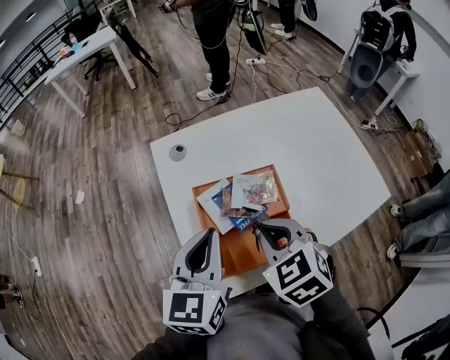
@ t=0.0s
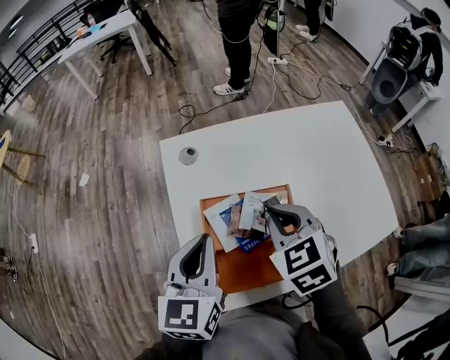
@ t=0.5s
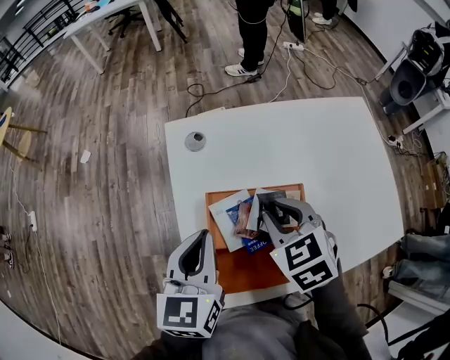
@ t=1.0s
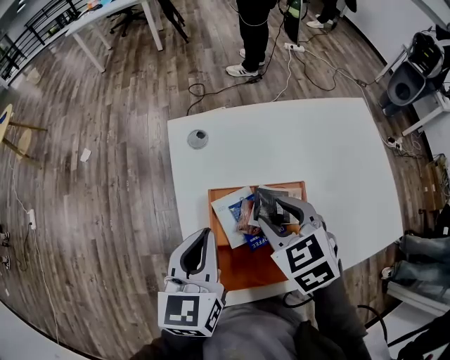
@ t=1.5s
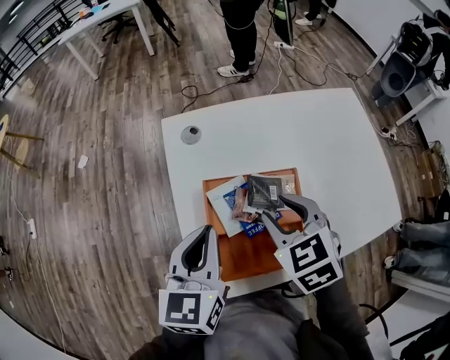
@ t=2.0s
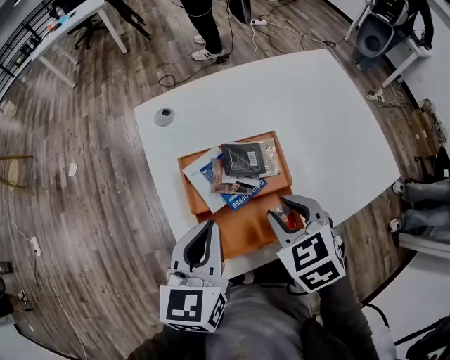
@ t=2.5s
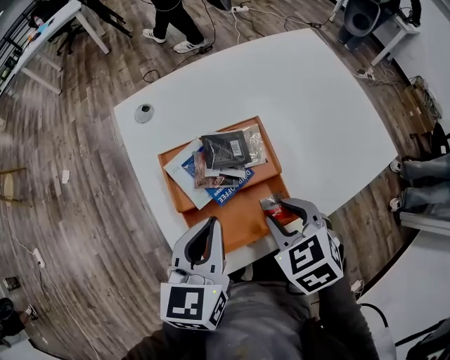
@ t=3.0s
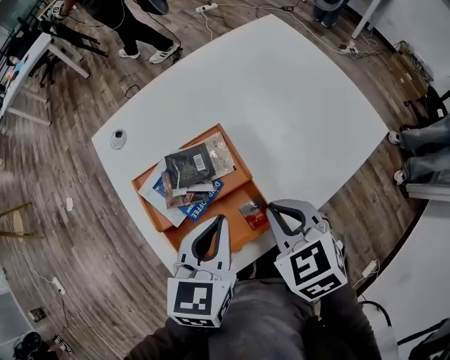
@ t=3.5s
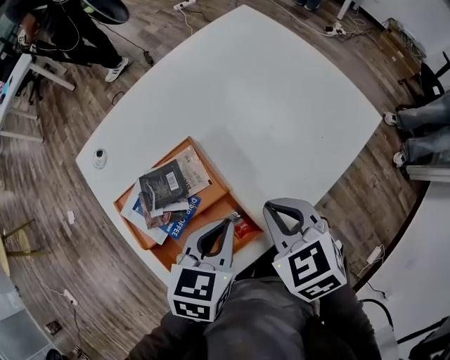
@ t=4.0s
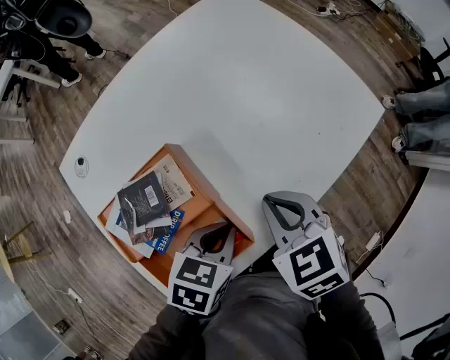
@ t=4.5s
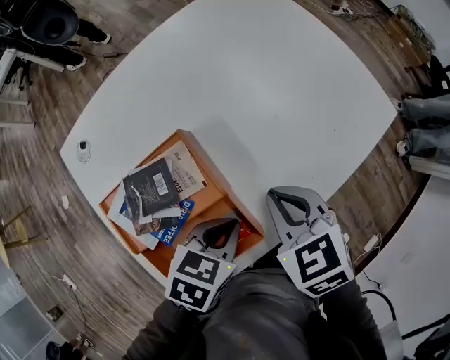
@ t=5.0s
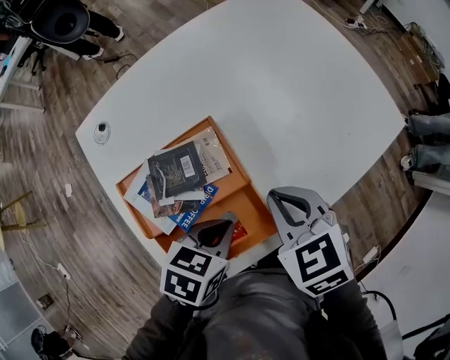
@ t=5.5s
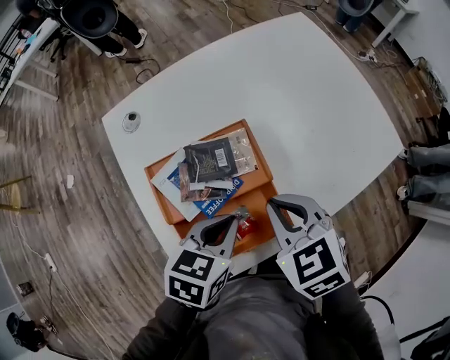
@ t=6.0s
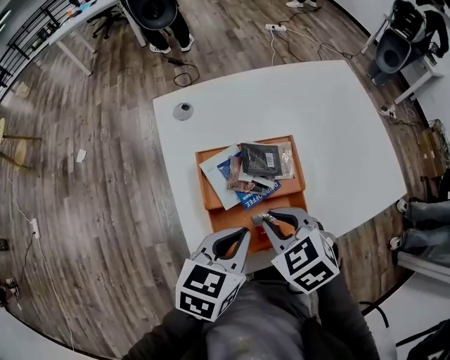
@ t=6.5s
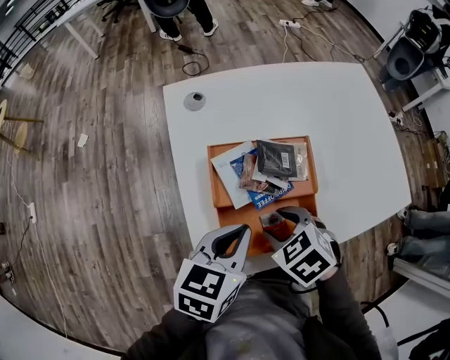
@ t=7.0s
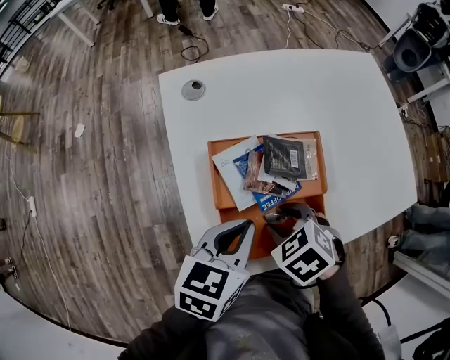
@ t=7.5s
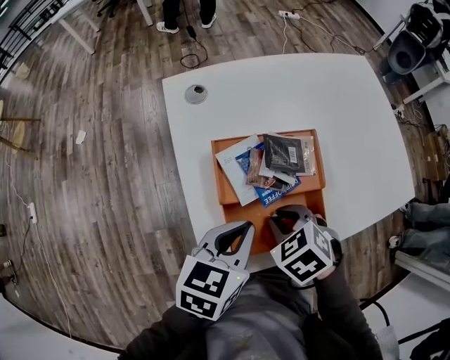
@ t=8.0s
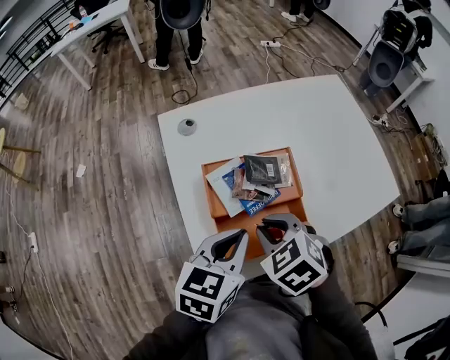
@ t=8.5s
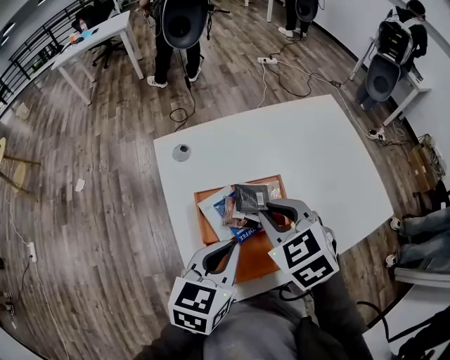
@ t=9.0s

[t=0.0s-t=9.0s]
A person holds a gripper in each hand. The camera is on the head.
t=0.0s to t=2.0s: The right gripper is displaced forward by some 5 cm, and opens its fingers.
t=2.0s to t=4.5s: The left gripper shifts by roughly 30 cm, and tilts its fingers some 30 degrees downward. Meanwhile the right gripper moves roughly 20 cm, changes its angle by approximately 30 degrees, and closes up.
t=4.5s to t=7.0s: The right gripper shifts by roughly 20 cm, rotates about 40 degrees, and opens. Meanwhile the left gripper moves approximately 20 cm, and turns by roughly 40 degrees.
t=7.0s to t=9.0s: The right gripper shifts approximately 15 cm upward and forward, rotates roughly 20 degrees, and closes; the left gripper travels upward by some 5 cm.

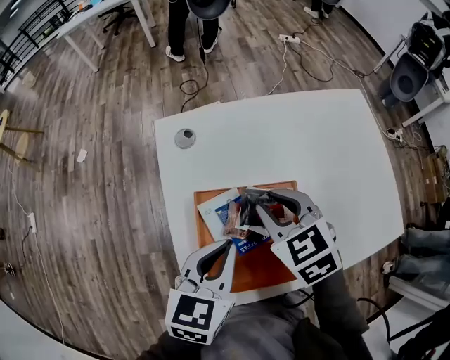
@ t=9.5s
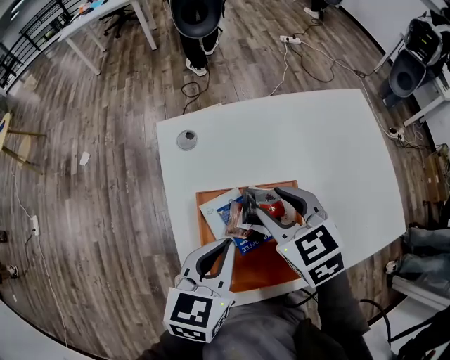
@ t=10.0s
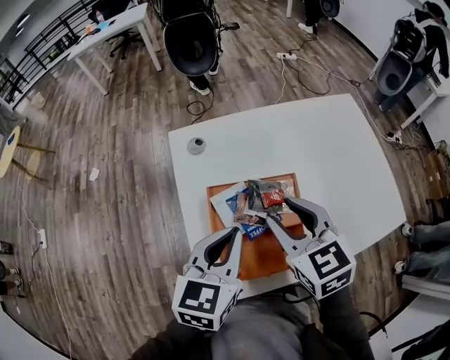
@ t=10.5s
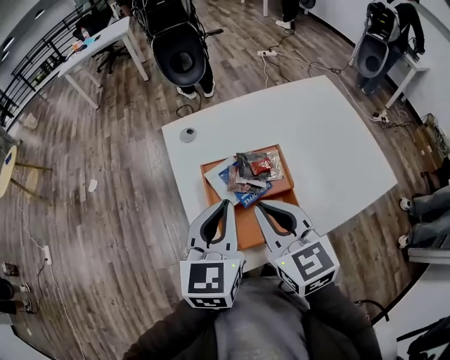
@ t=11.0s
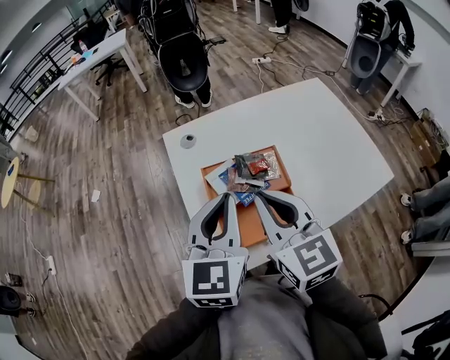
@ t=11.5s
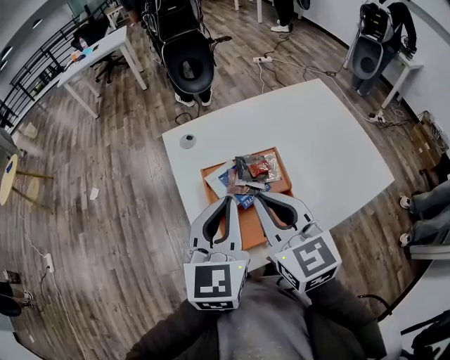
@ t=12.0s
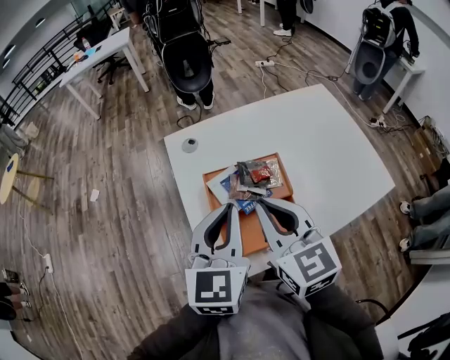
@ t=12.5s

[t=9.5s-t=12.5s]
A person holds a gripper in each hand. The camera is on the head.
t=9.5s to t=11.0s: The right gripper moves backward and upward, about 15 cm, changes its angle by roughly 30 degrees, and closes up. The left gripper travels upward by approximately 5 cm, and rotates approximately 20 degrees.
t=11.0s to t=12.5s: The grippers make only small movements.

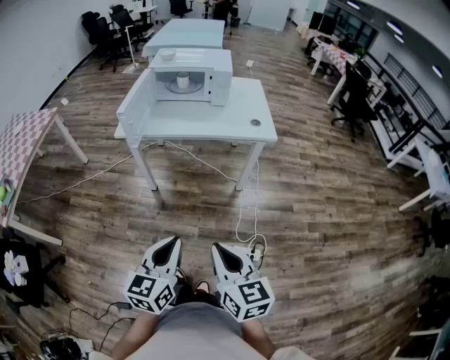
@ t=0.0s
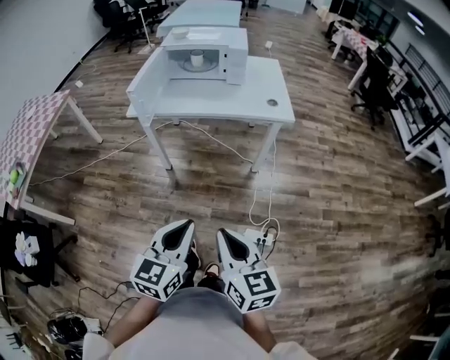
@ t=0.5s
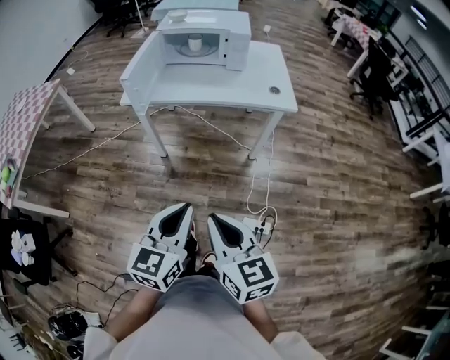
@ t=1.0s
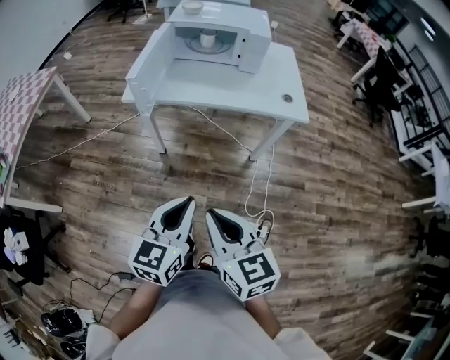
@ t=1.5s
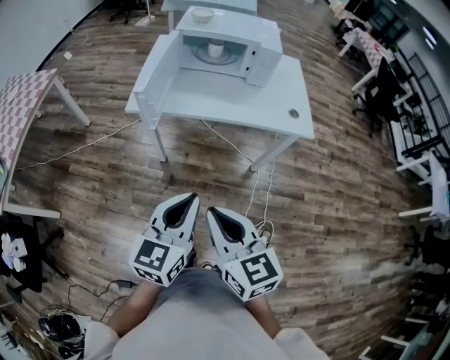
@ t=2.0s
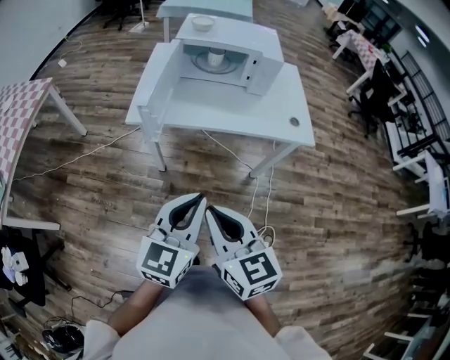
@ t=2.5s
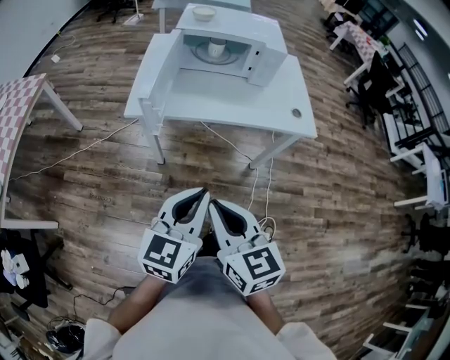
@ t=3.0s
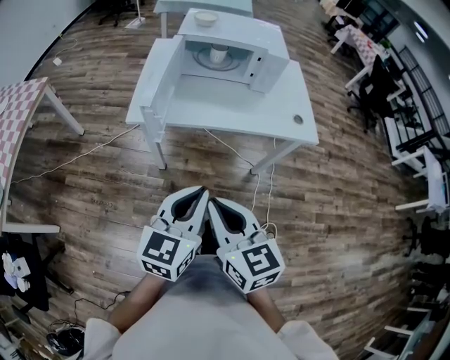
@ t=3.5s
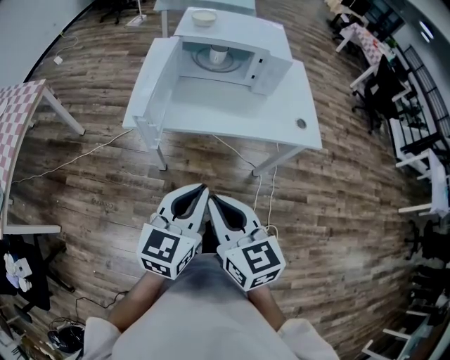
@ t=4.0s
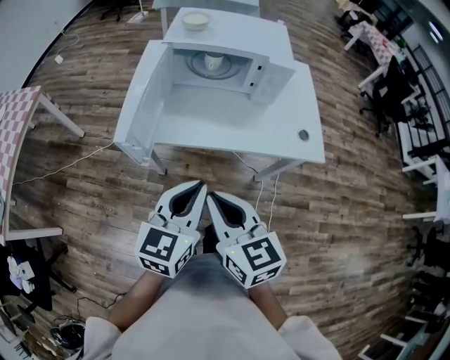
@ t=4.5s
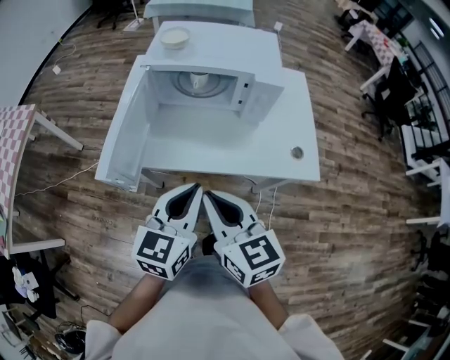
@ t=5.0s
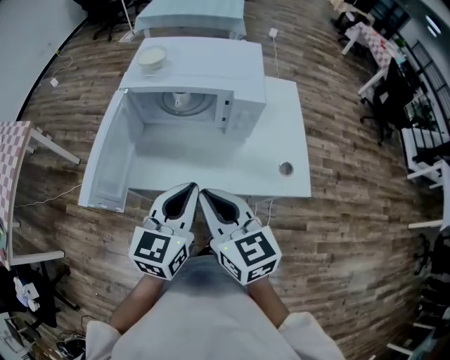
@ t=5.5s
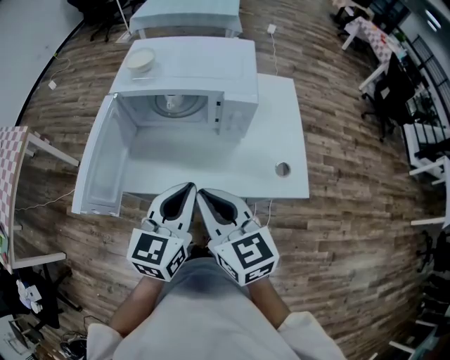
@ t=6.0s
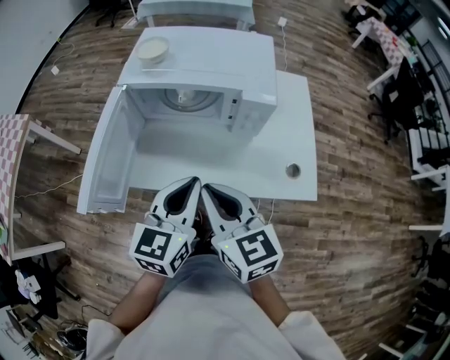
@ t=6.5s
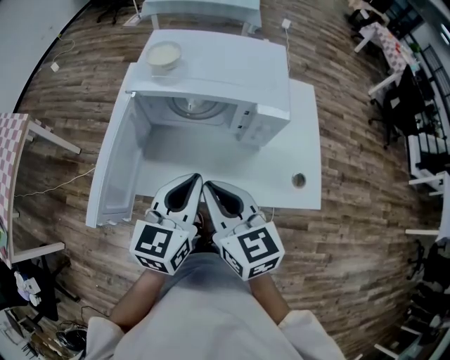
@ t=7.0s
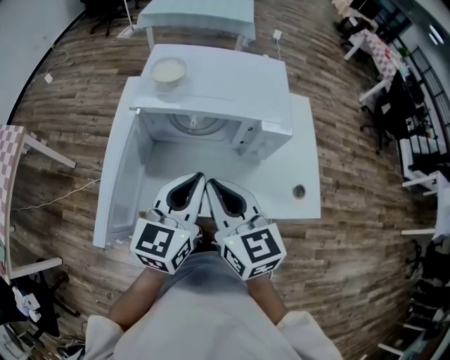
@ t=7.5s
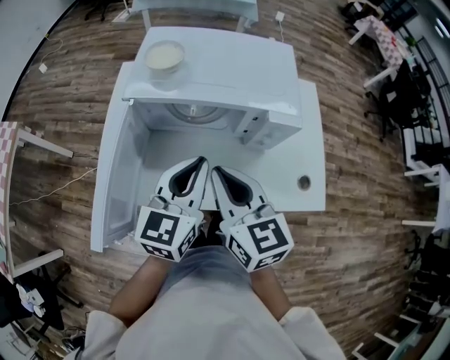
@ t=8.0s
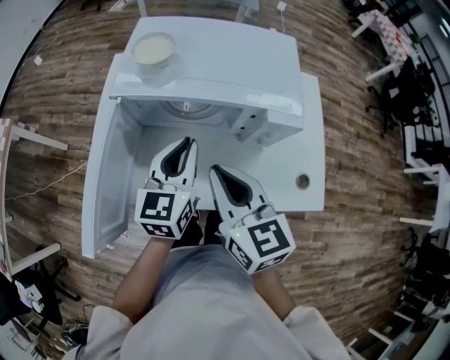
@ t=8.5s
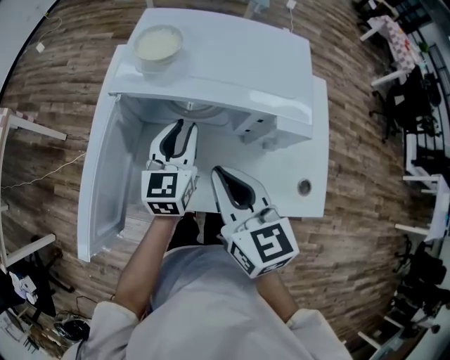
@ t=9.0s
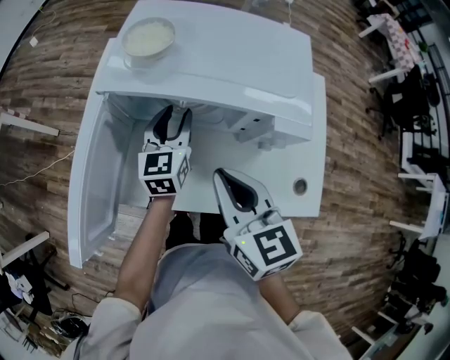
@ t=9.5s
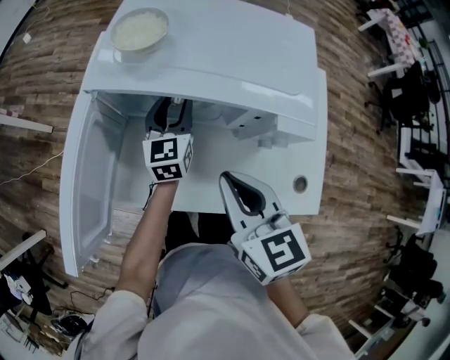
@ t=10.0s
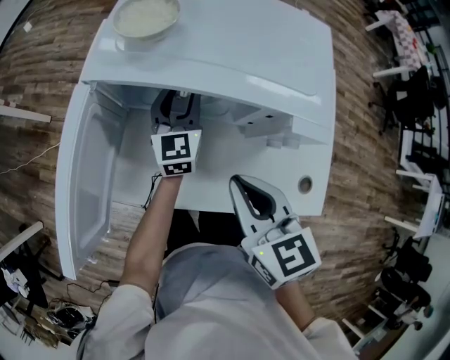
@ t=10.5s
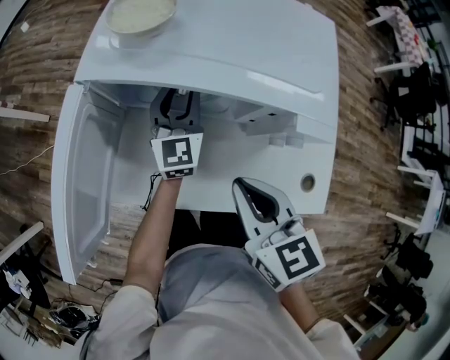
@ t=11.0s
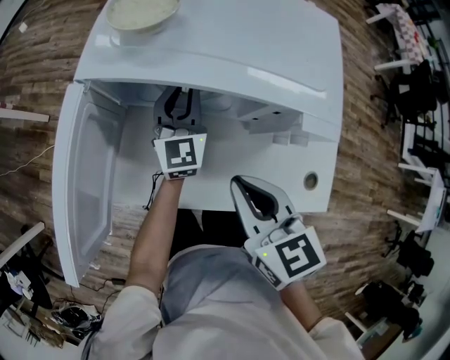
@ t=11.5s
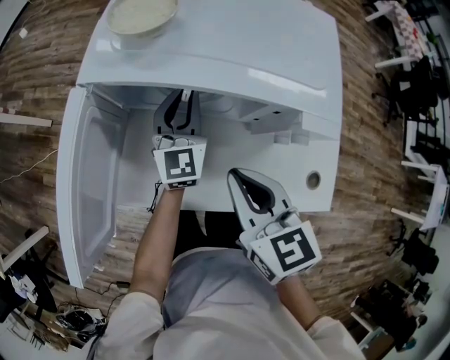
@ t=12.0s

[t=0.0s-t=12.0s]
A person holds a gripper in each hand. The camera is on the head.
t=0.0s to t=2.0s: The right gripper goes some 20 cm forward and to the left. Meanwhile the left gripper shifts approximately 20 cm forward.
t=2.0s to t=4.0s: The grippers both shift forward by some 10 cm.
t=4.0s to t=6.0s: The grippers both shift forward and to the right by about 30 cm.
t=6.0s to t=8.0s: The two grippers go roughly 15 cm forward and to the left.
t=8.0s to t=10.0s: The right gripper heads downward, covering some 5 cm, while the left gripper shifts some 25 cm forward and downward, turns by approximately 20 degrees, and opens its fingers.
t=10.0s to t=12.0s: The left gripper closes up.

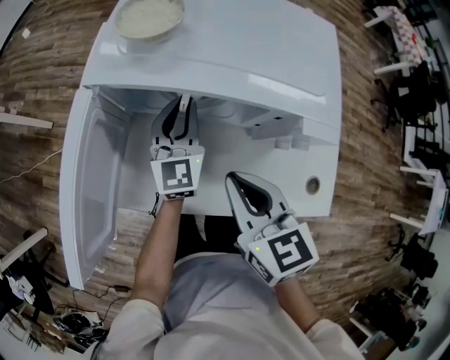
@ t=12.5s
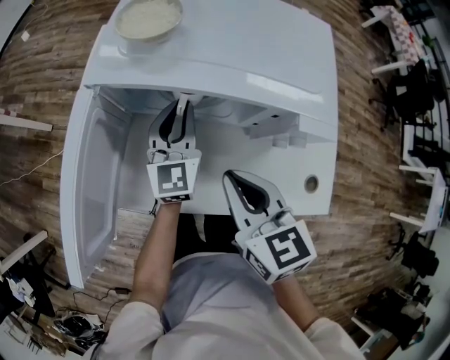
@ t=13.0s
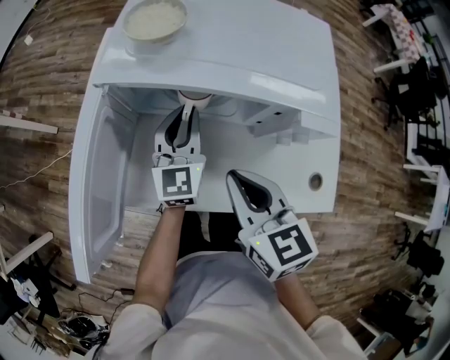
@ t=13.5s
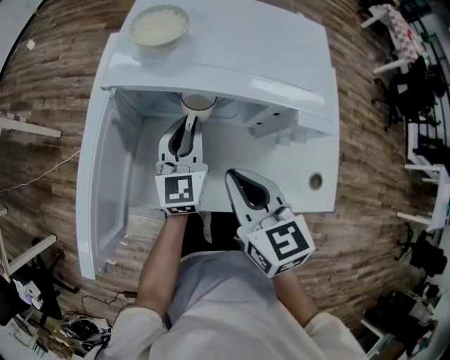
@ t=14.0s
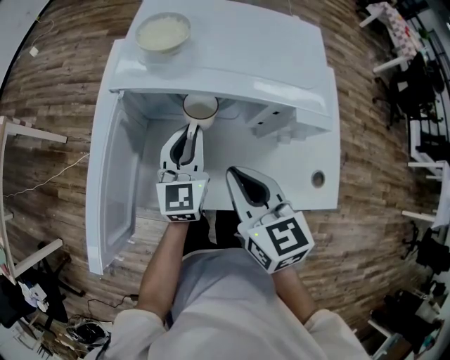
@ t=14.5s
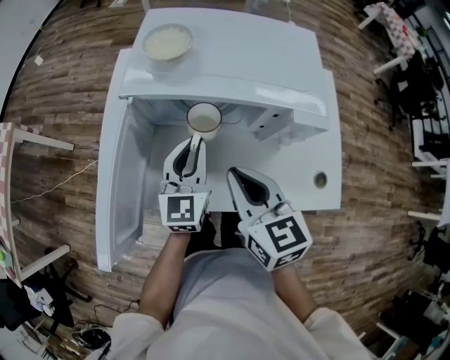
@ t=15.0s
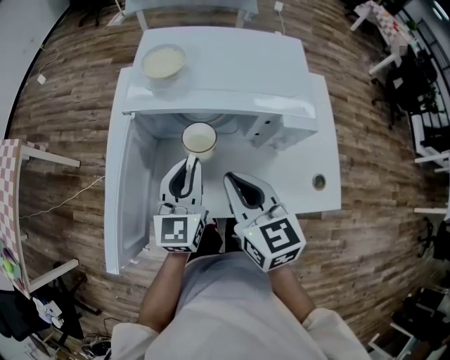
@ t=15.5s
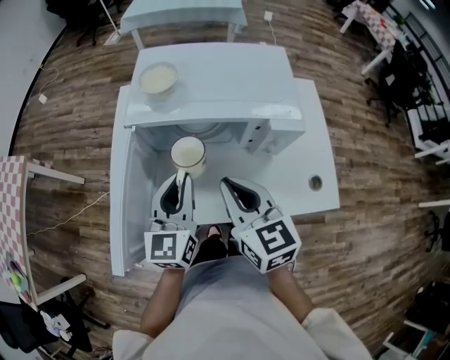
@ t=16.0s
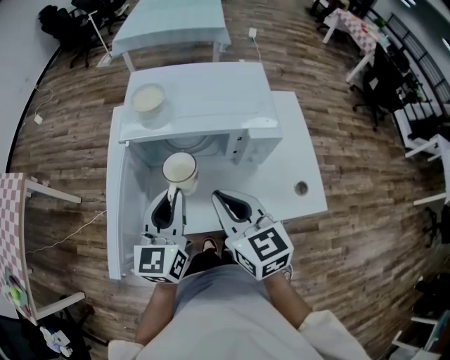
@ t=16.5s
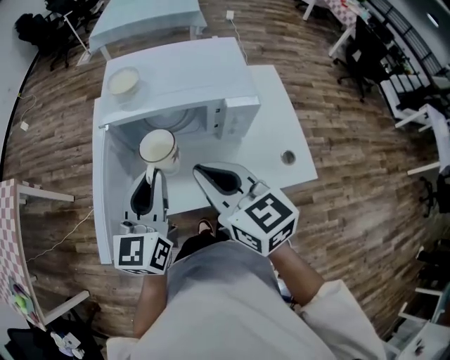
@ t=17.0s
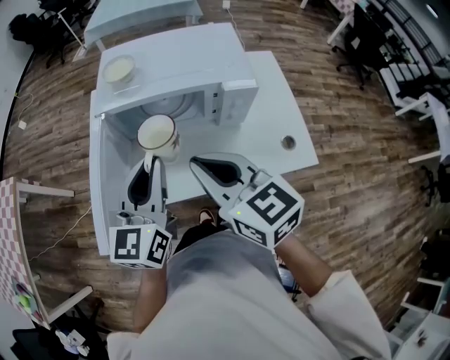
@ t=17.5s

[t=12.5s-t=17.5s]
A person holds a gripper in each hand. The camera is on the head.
t=12.5s to t=15.0s: The left gripper is displaced backward by some 10 cm.
t=15.0s to t=17.5s: Both grippers travel together upward and backward, approximately 15 cm.
